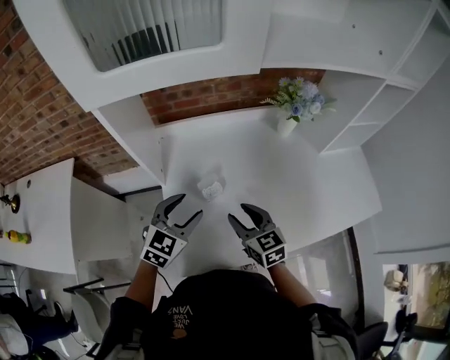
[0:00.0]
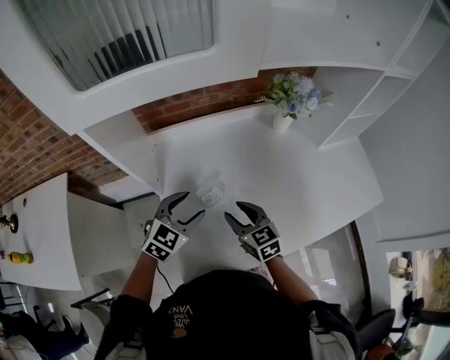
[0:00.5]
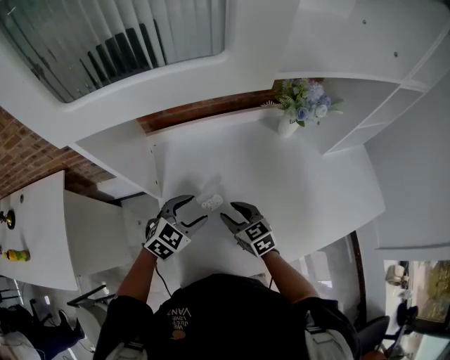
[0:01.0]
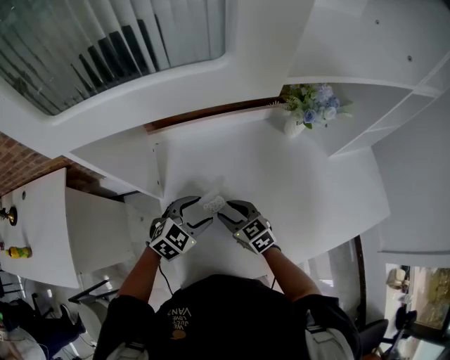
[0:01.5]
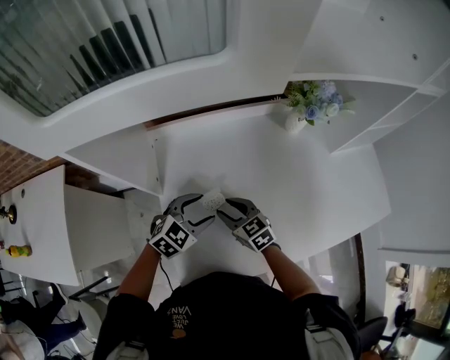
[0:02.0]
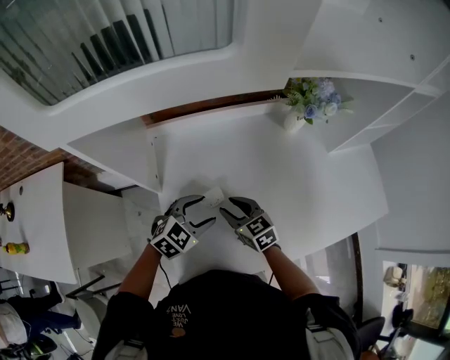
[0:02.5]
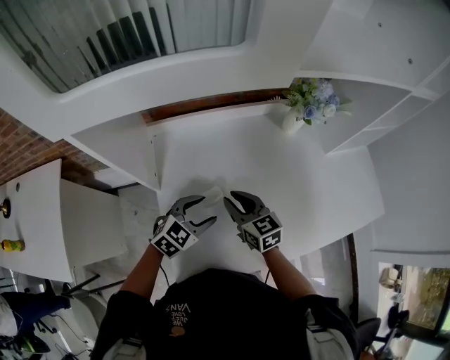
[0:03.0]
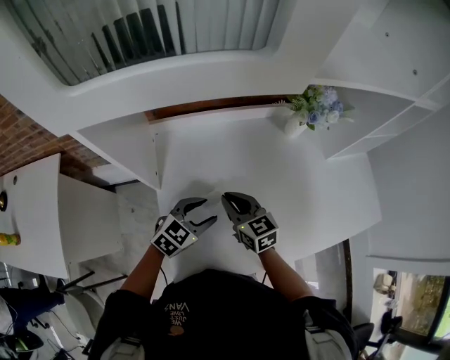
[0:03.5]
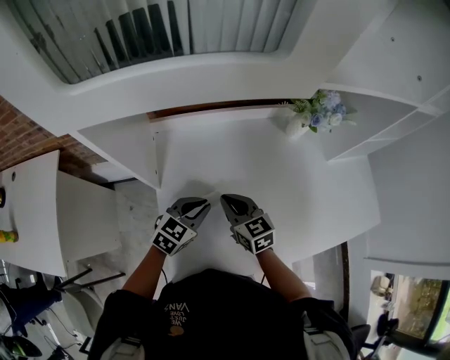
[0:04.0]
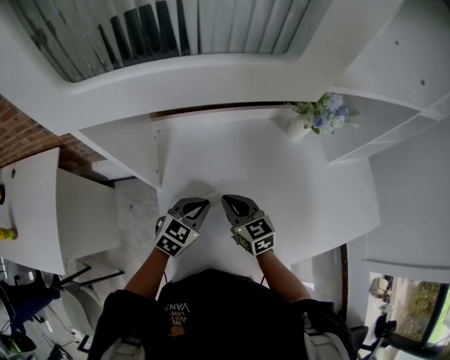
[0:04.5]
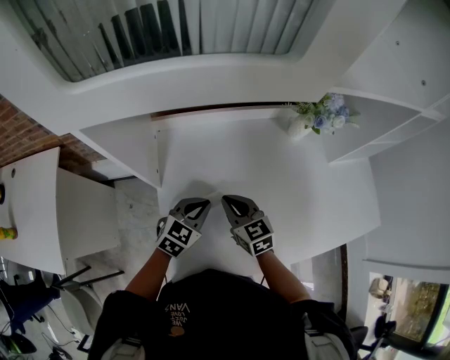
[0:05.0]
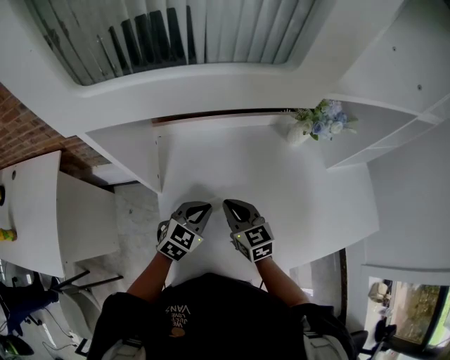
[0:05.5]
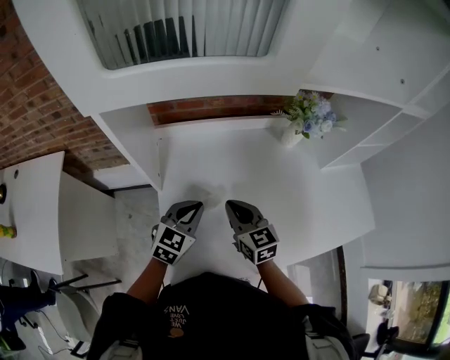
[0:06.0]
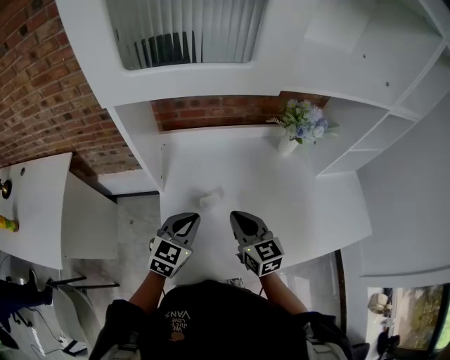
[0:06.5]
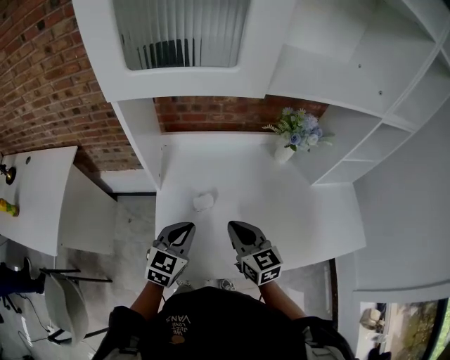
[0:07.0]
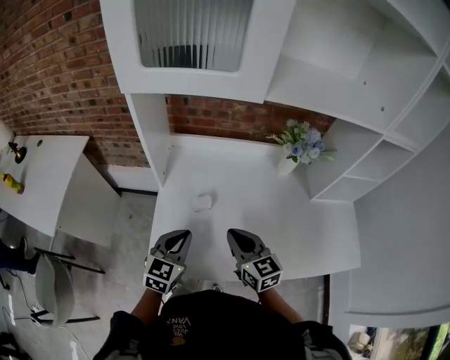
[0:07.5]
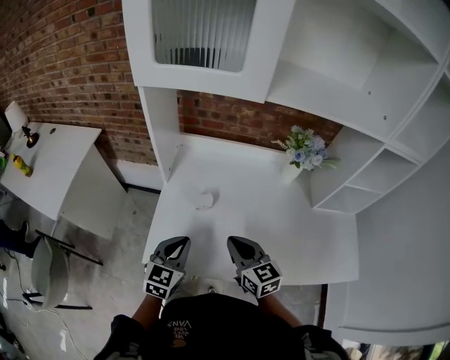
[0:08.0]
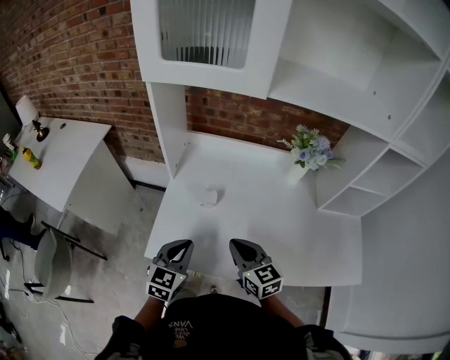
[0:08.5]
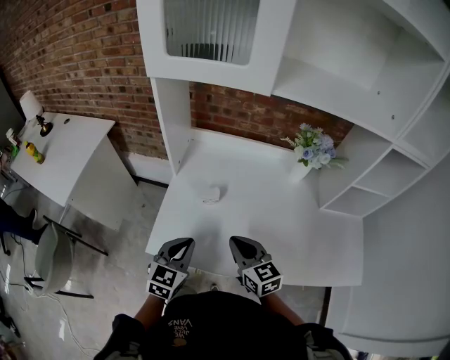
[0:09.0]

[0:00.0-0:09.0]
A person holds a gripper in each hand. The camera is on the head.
0:00.0 to 0:02.0: The right gripper shifts approximately 15 cm downward, forward and to the left. Meanwhile the left gripper moves downward and forward, roughly 10 cm, and changes its angle by about 20 degrees.
0:02.0 to 0:04.5: The right gripper moves approximately 5 cm, and closes up. Meanwhile the left gripper closes.
0:04.5 to 0:07.0: The right gripper travels backward, upward and to the right by about 15 cm. Meanwhile the left gripper goes about 15 cm backward and upward, and rotates approximately 20 degrees.
0:07.0 to 0:09.0: Both grippers travel together backward, some 10 cm.

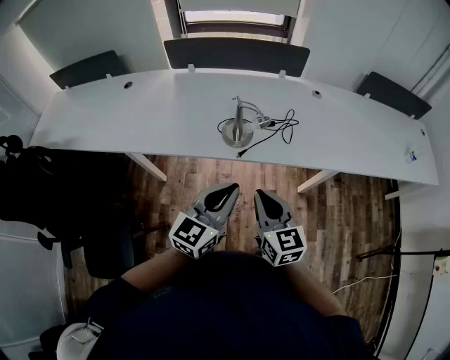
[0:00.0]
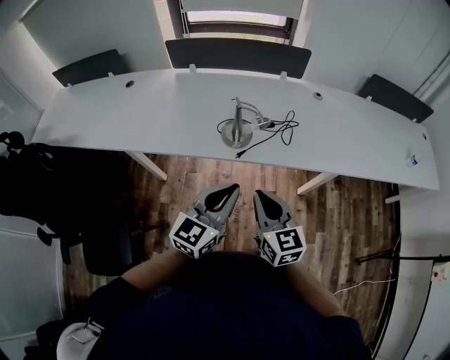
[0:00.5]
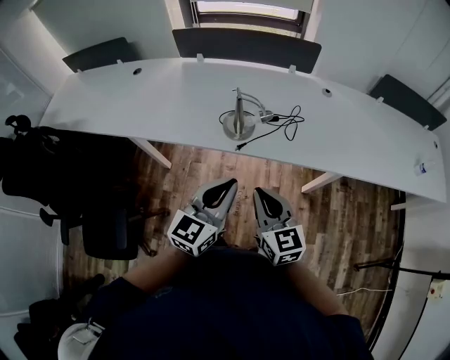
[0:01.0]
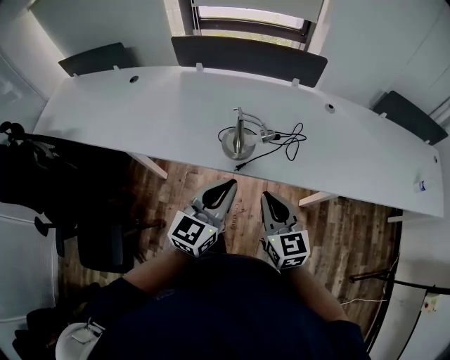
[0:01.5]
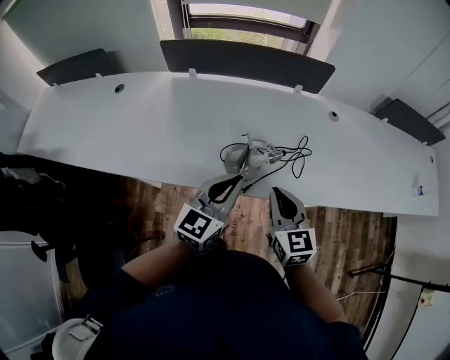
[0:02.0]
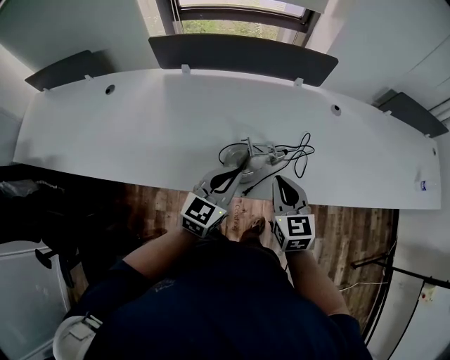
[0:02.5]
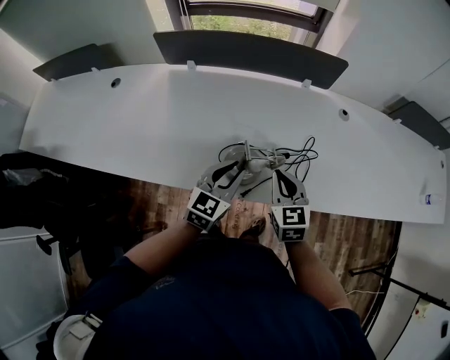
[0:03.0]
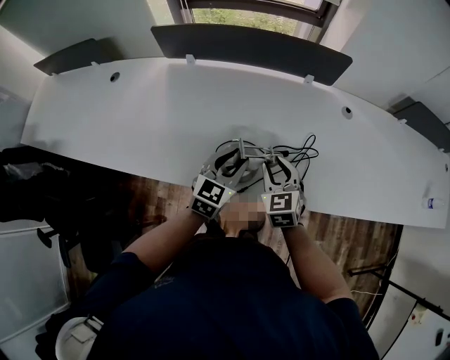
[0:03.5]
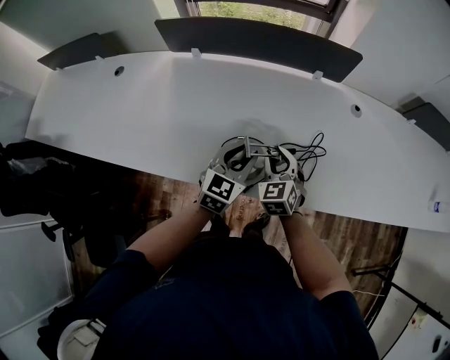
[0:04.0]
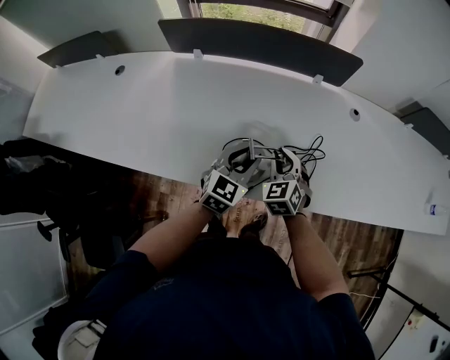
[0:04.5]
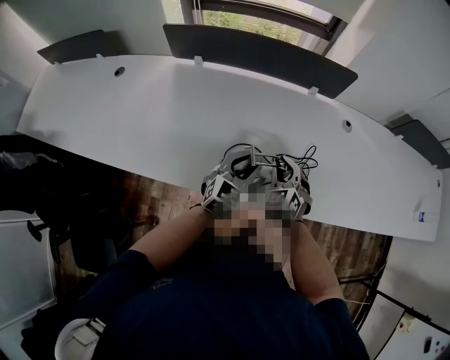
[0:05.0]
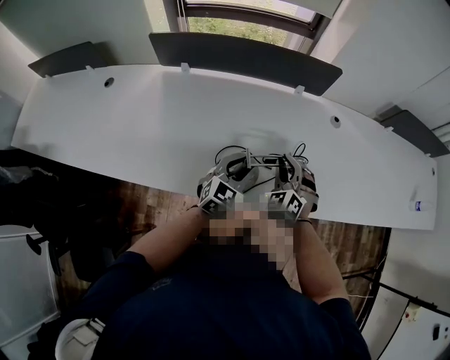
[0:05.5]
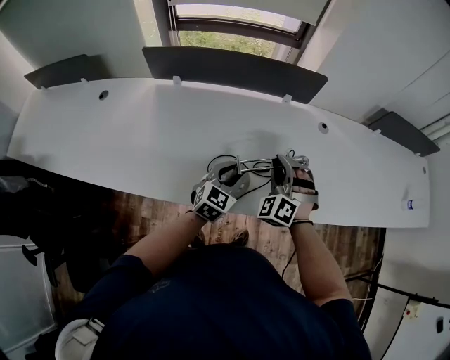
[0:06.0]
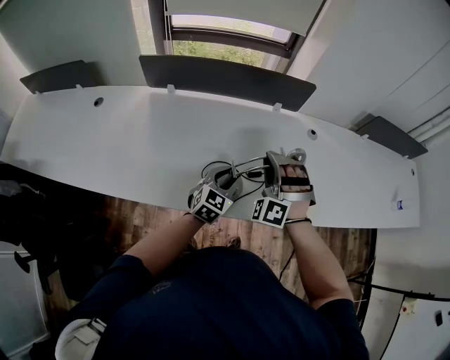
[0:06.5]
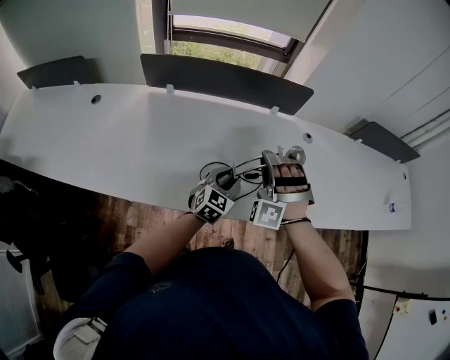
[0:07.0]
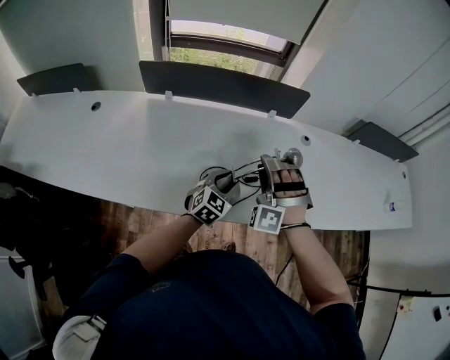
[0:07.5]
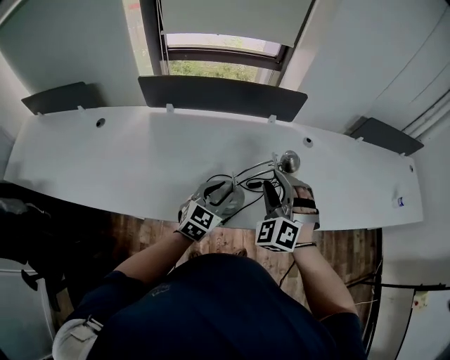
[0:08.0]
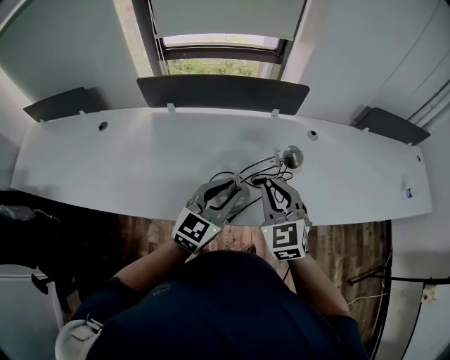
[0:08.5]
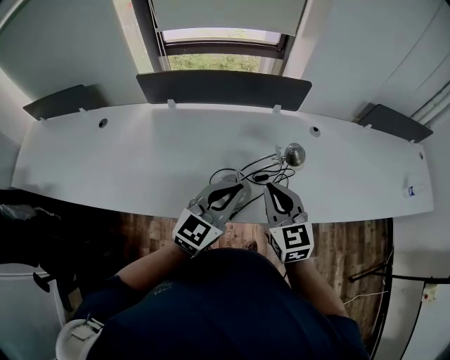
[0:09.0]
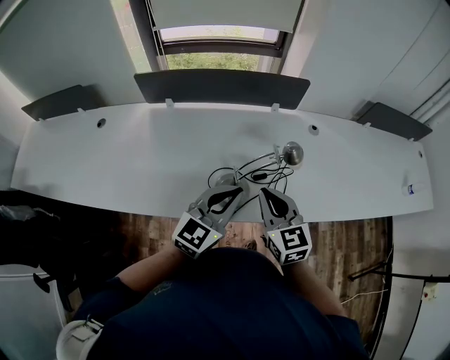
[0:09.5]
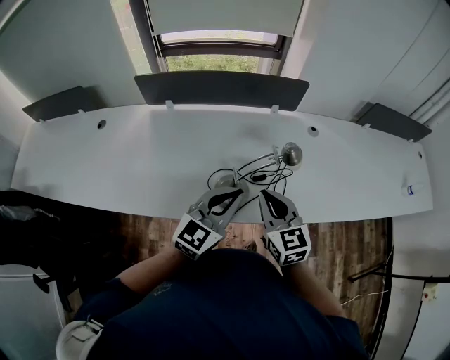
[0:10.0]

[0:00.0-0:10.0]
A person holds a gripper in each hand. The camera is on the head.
0:00.0 to 0:02.0: Both grippers move forward, roughly 20 cm.
0:02.0 to 0:04.0: The two grippers go some 20 cm forward and downward. The left gripper opens its fingers. Meanwhile the right gripper changes its angle by approximately 30 degrees, and opens.
0:04.0 to 0:06.0: The right gripper heads upward and to the right, covering some 10 cm, and rolls counterclockwise, seen from behind, by about 40 degrees.
0:06.0 to 0:08.0: The left gripper is displaced upward by approximately 5 cm, while the right gripper moves upward and backward, about 10 cm, and opens.
0:08.0 to 0:10.0: The right gripper changes place by about 5 cm, rolls clockwise, seen from behind, by some 60 degrees, and closes, while the left gripper goes some 10 cm upward, and closes its fingers.

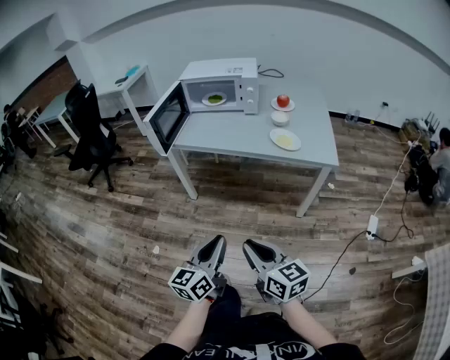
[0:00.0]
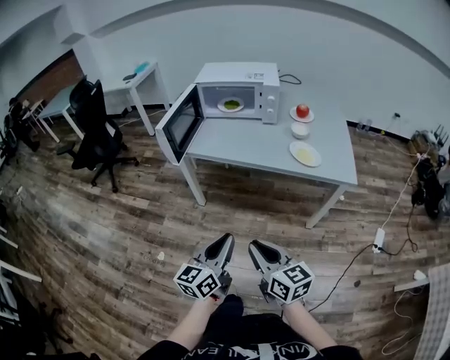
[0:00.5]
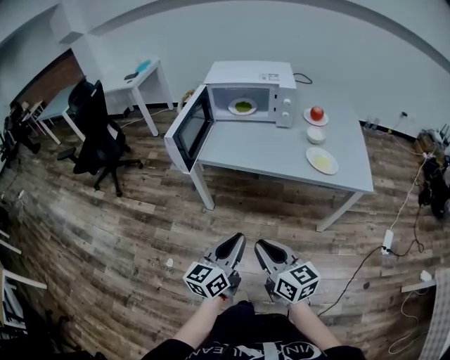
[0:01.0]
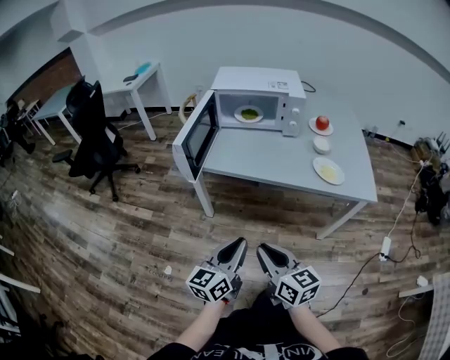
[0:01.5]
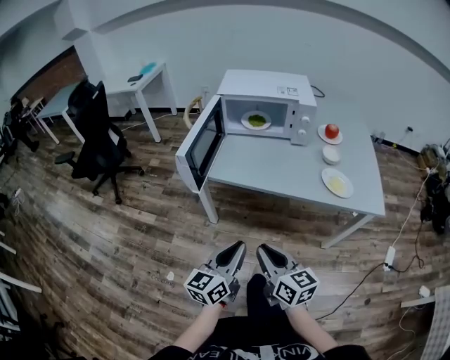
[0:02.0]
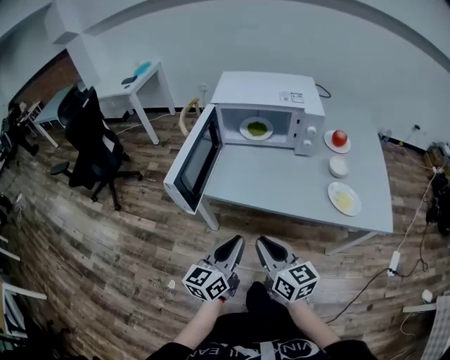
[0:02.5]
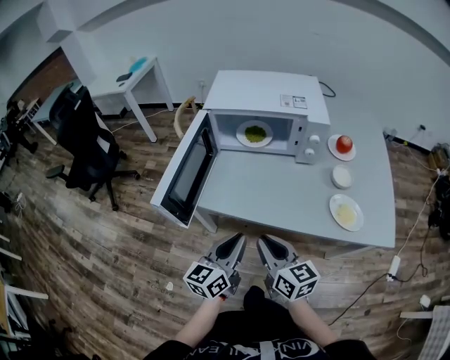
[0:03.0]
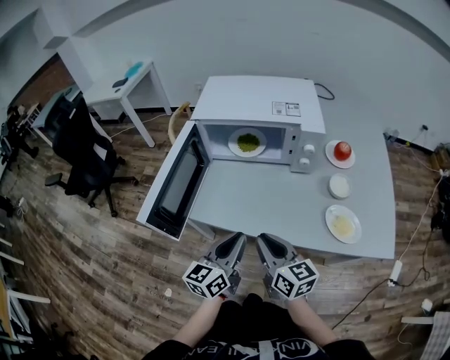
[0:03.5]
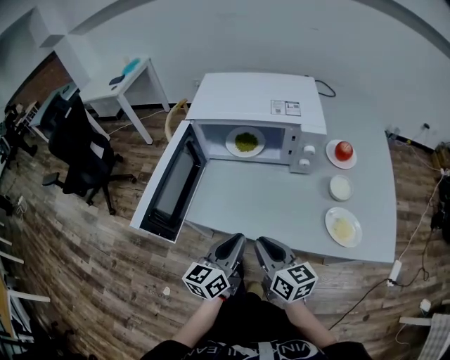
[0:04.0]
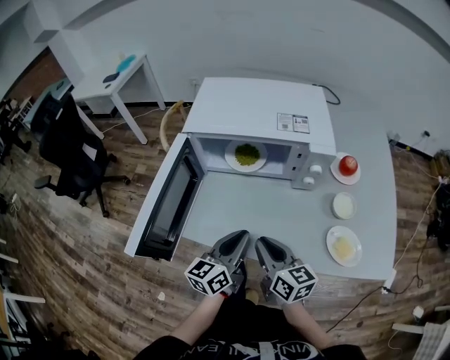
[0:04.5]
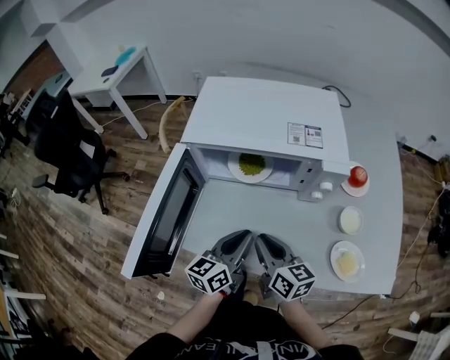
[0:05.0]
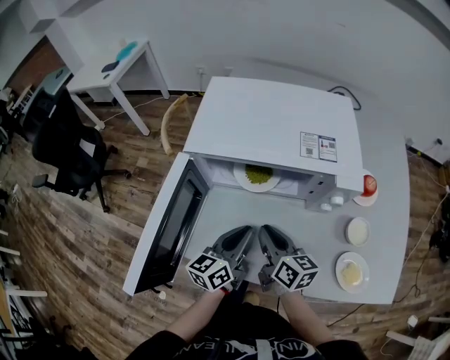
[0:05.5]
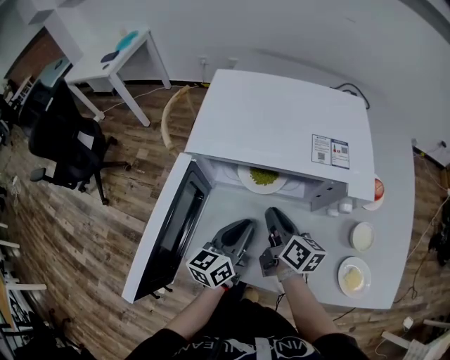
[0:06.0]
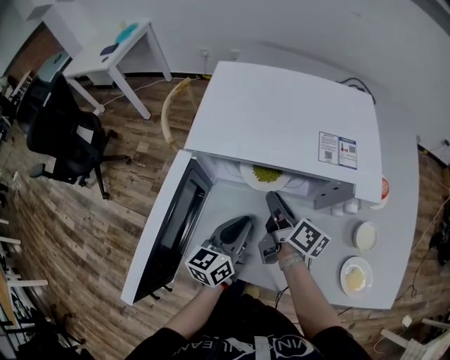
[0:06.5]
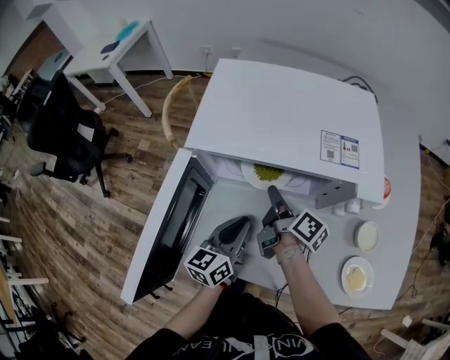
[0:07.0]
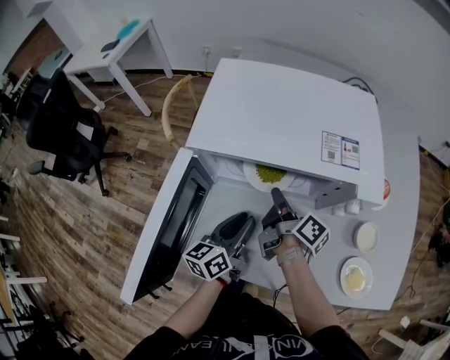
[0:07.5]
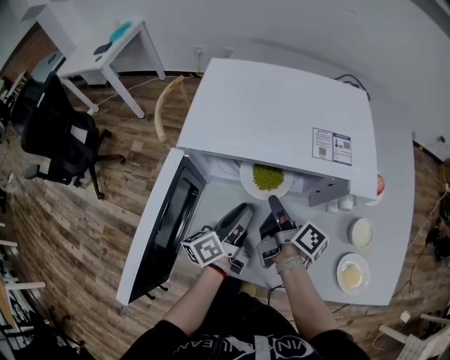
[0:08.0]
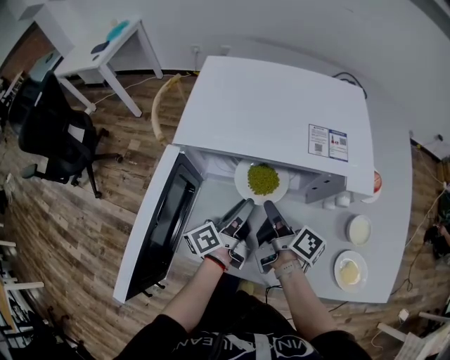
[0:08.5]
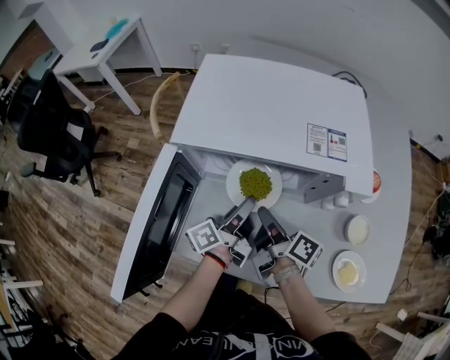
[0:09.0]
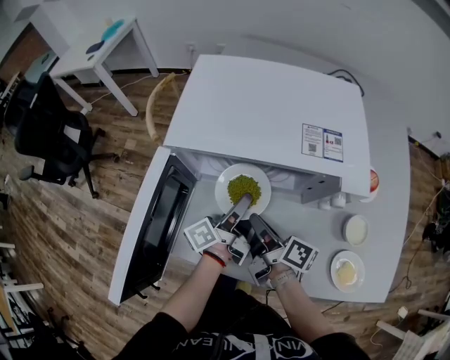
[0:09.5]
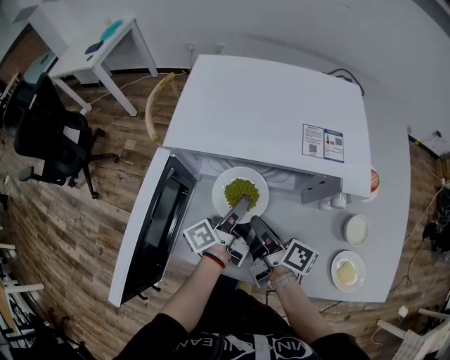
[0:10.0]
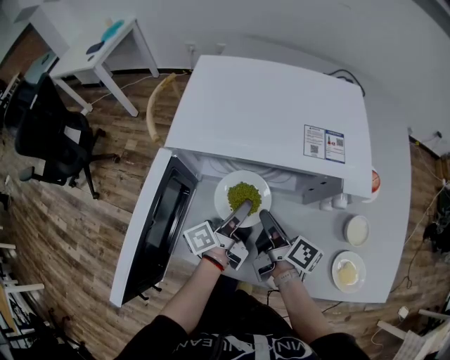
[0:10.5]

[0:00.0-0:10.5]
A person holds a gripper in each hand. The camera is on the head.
0:00.0 to 0:02.0: Both grippers move forward and to the left, some 25 cm.
0:02.0 to 0:04.0: Both grippers travel together forward, about 25 cm.
0:04.0 to 0:06.5: The two grippers go approximately 25 cm forward. The right gripper rotates approximately 40 degrees.
0:06.5 to 0:08.5: The left gripper twists roughly 40 degrees counterclockwise, seen from behind.
0:08.5 to 0:10.5: The grippers move only a little.
